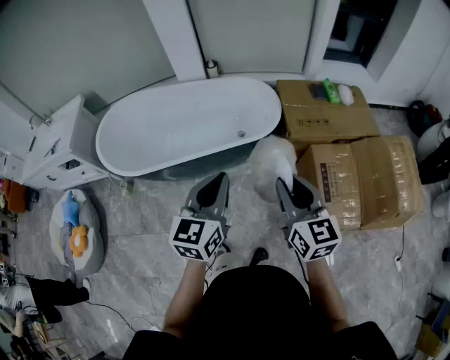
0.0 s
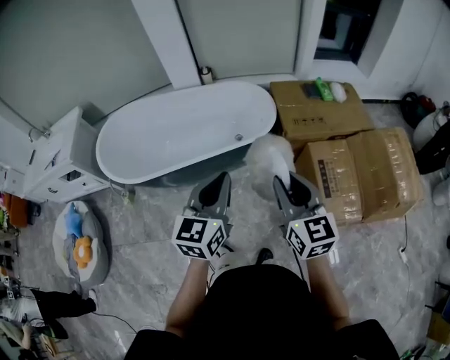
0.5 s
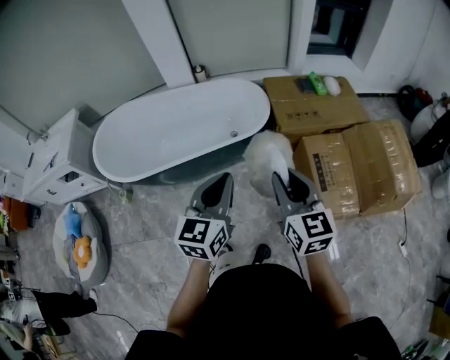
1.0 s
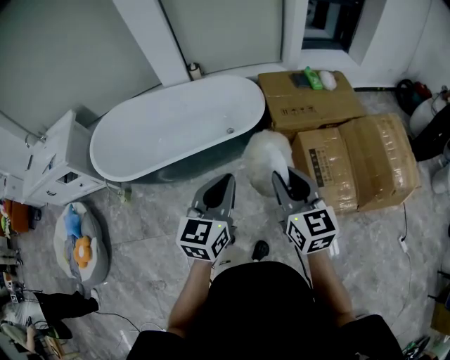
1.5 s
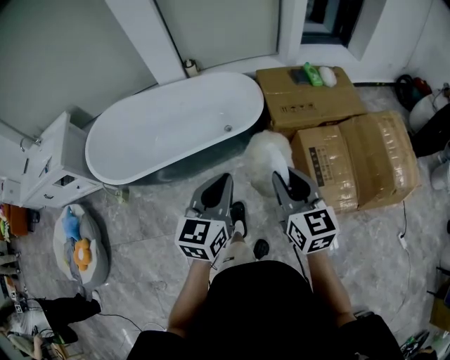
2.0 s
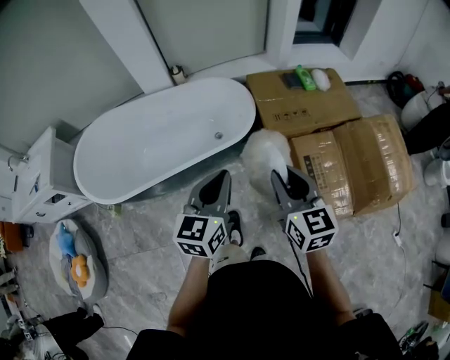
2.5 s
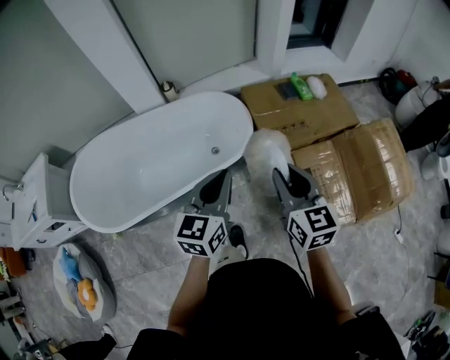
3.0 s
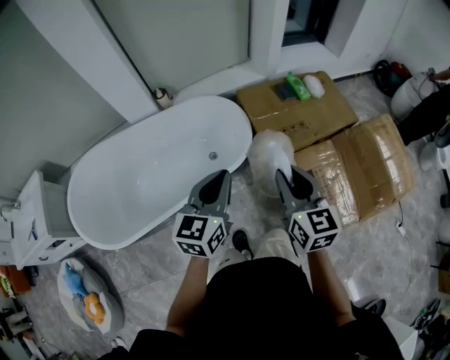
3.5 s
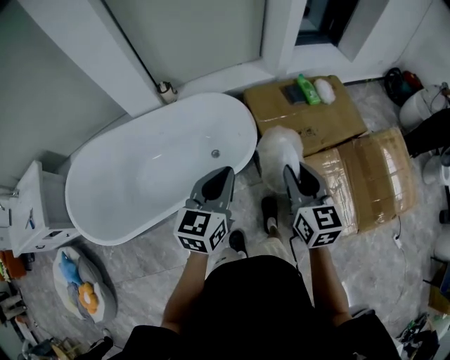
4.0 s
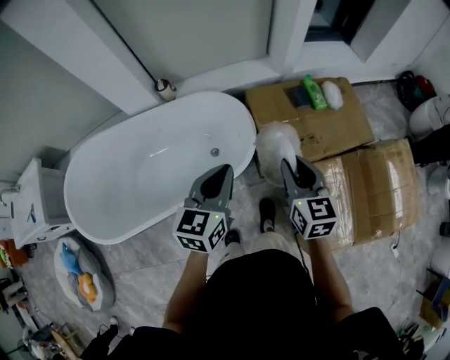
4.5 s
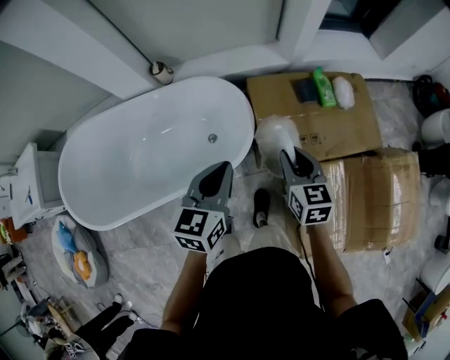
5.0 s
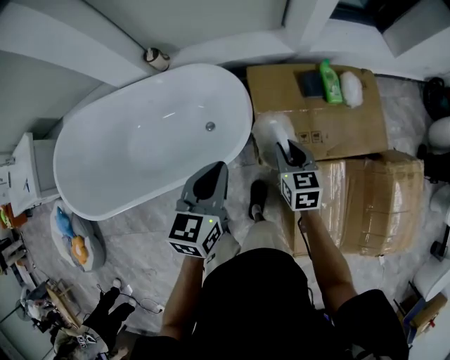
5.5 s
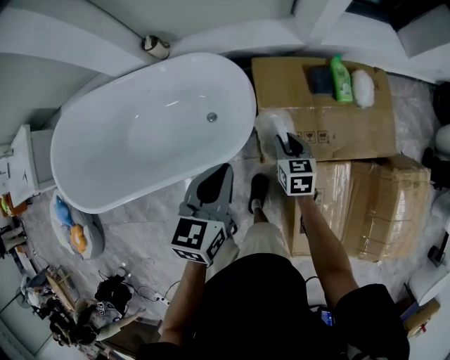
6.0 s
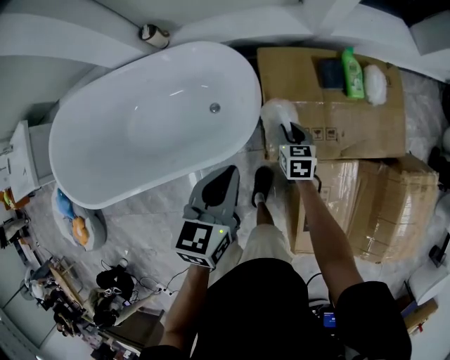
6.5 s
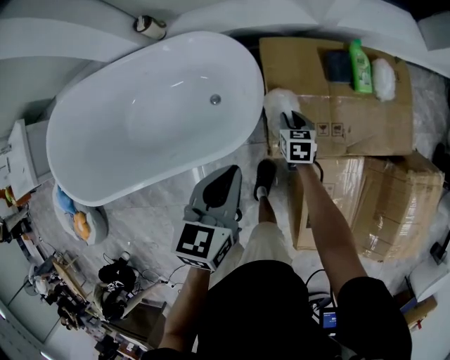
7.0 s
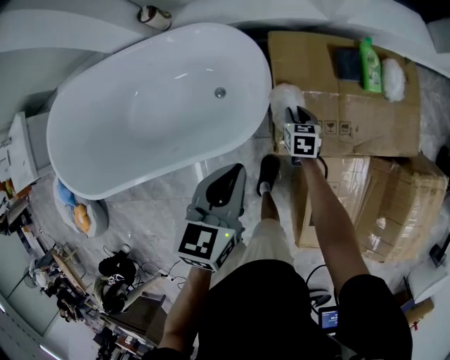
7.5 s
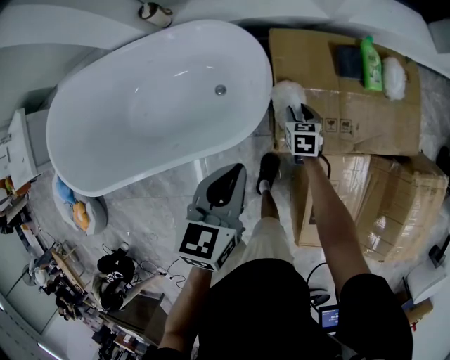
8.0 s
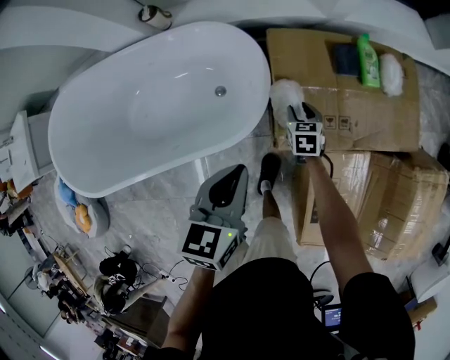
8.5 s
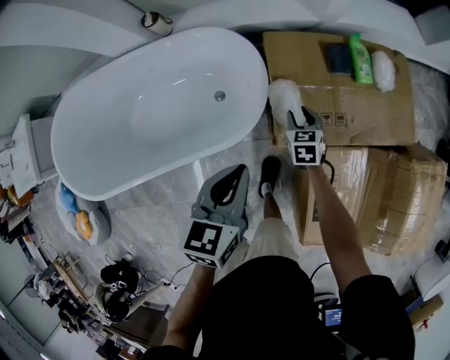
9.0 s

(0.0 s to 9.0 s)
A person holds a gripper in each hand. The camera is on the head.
0.0 s - 2.0 s: The right gripper moves approximately 5 cm, while the left gripper goes approximately 5 cm to the right.
2.0 s - 4.5 s: The two grippers travel together, forward, roughly 40 cm.
4.5 s - 7.0 s: The right gripper goes some 50 cm downward and forward, and angles its fingers downward, by approximately 30 degrees. The left gripper travels downward, forward and to the right by about 20 cm, and changes its angle by roughly 20 degrees.
7.0 s - 9.0 s: The right gripper changes place by some 5 cm, while the left gripper is displaced backward by about 5 cm.

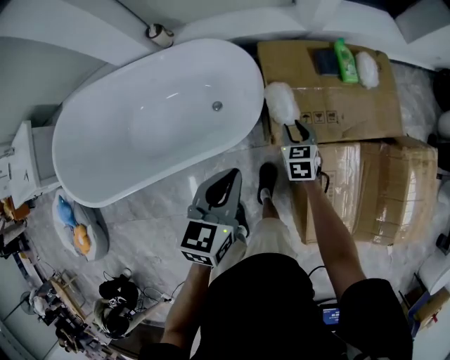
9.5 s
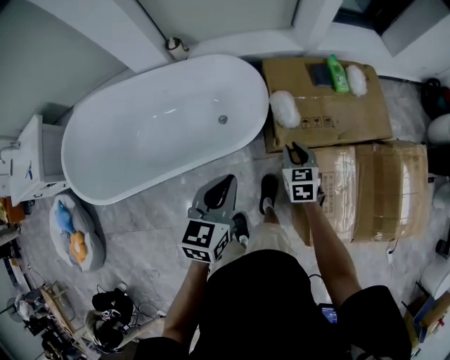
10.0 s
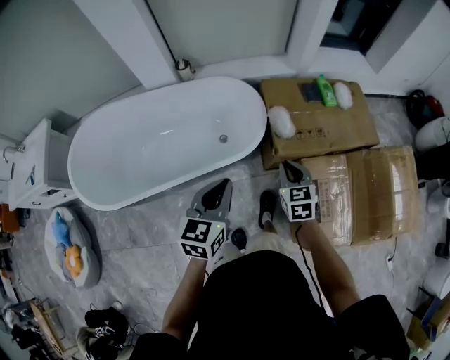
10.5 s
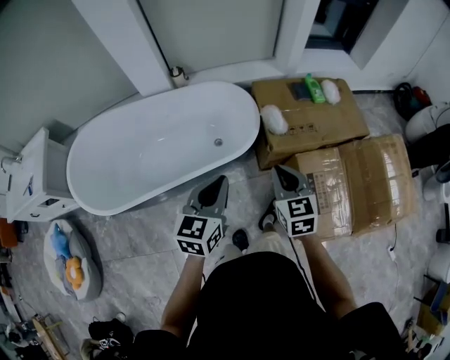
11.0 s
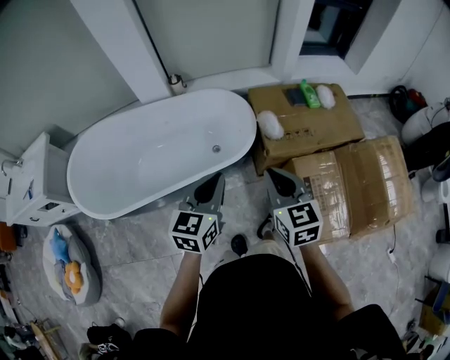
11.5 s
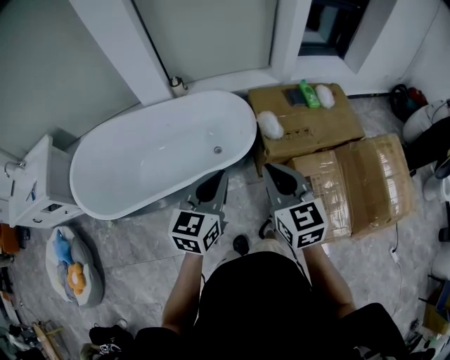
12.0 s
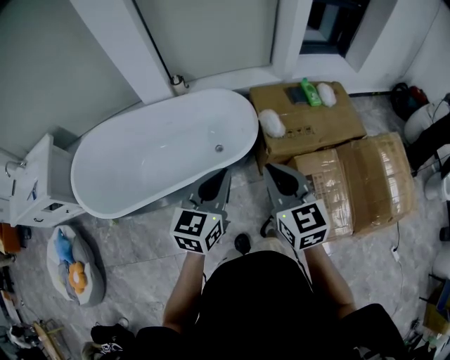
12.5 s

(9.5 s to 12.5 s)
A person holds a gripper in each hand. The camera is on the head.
9.5 s - 11.0 s: The right gripper is displaced backward and upward by roughly 40 cm, and closes; the left gripper is displaced backward, upward and to the left by roughly 25 cm.
11.0 s - 12.5 s: The right gripper travels upward by approximately 10 cm, while the left gripper shifts roughly 5 cm upward.

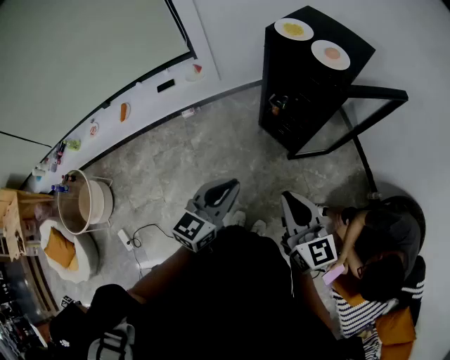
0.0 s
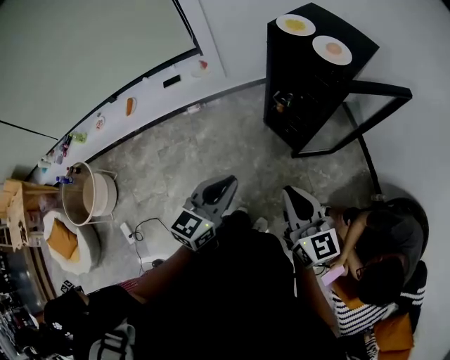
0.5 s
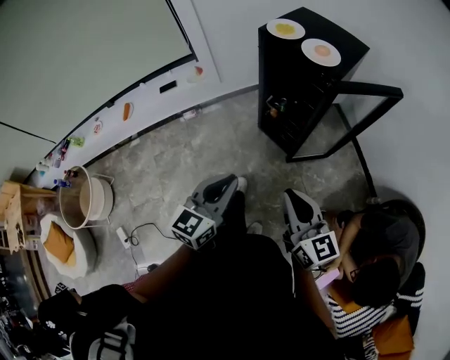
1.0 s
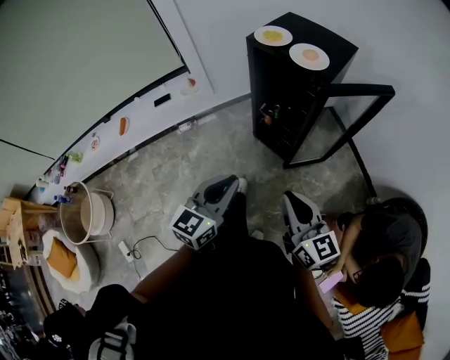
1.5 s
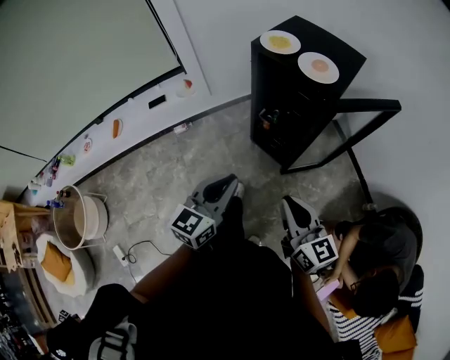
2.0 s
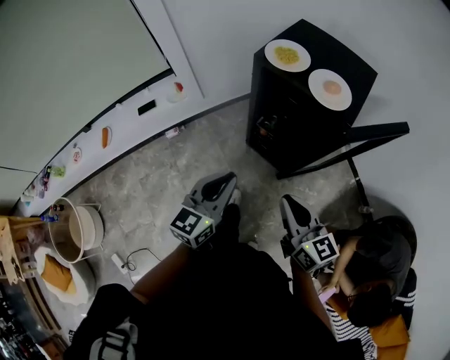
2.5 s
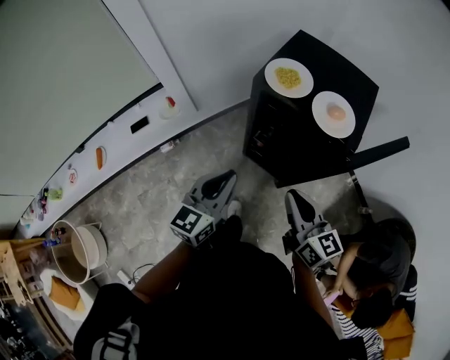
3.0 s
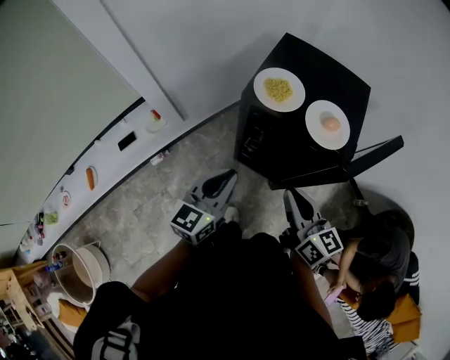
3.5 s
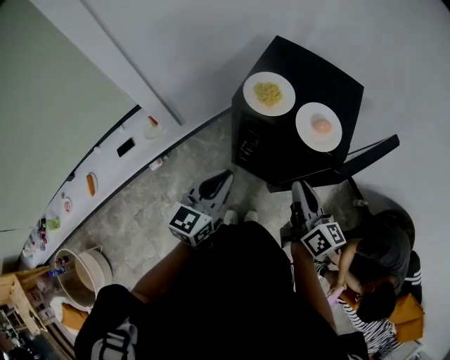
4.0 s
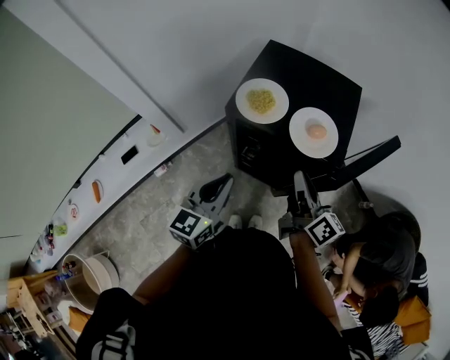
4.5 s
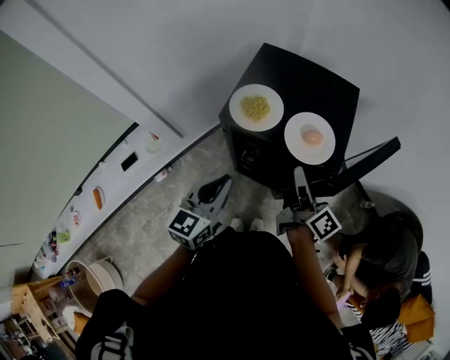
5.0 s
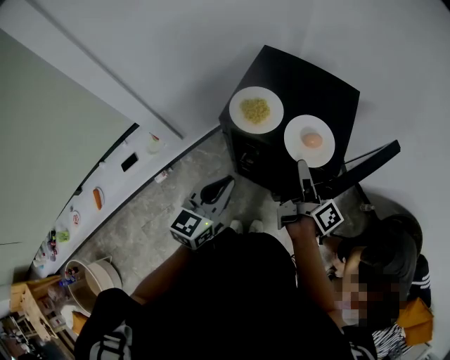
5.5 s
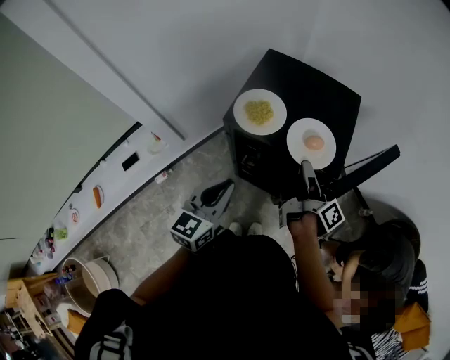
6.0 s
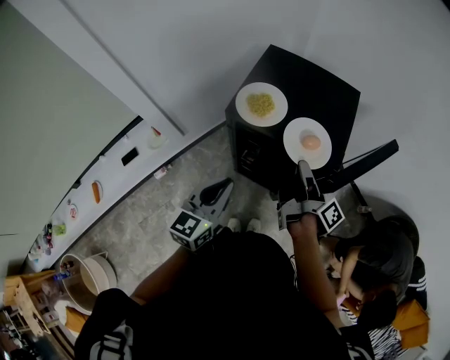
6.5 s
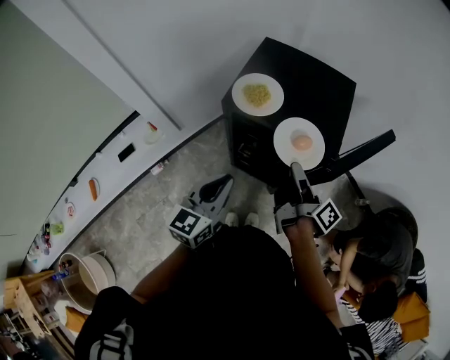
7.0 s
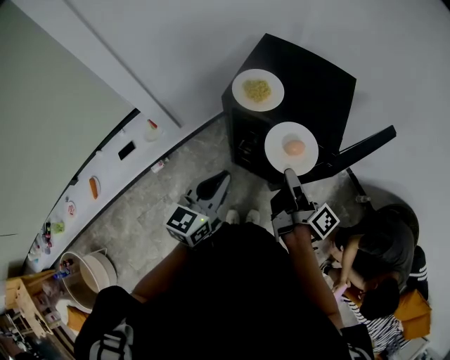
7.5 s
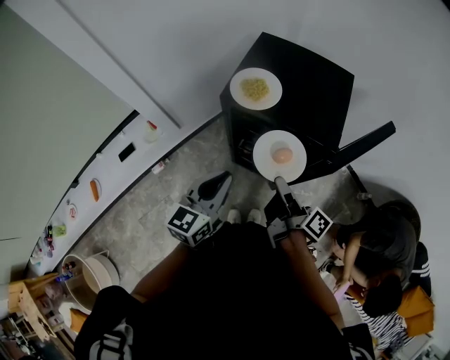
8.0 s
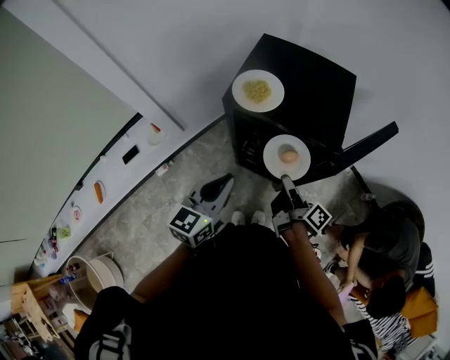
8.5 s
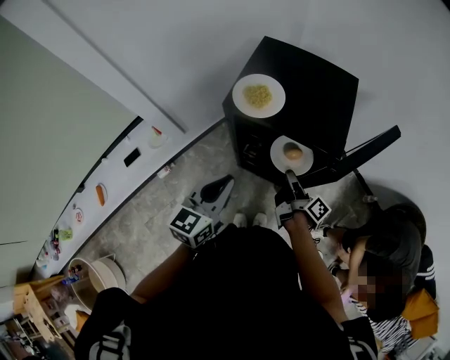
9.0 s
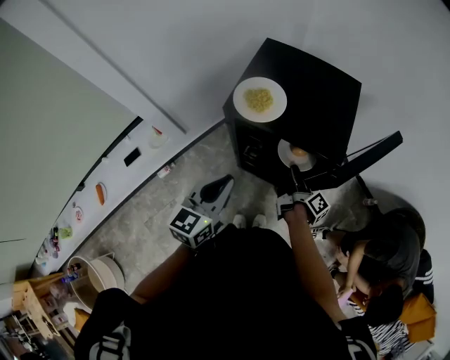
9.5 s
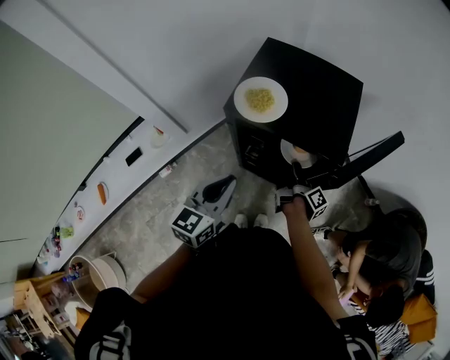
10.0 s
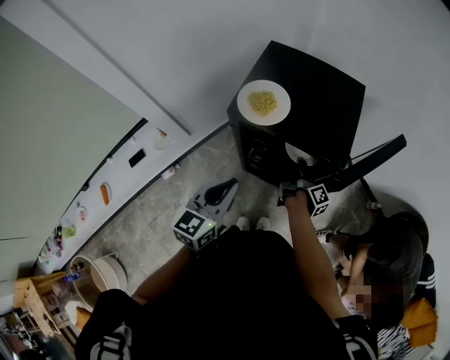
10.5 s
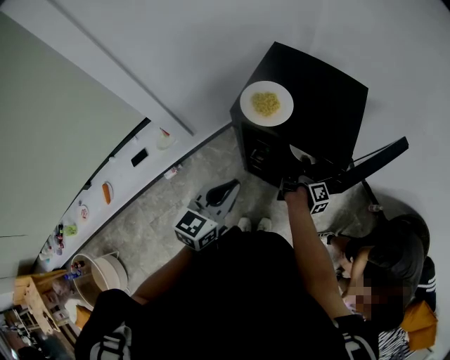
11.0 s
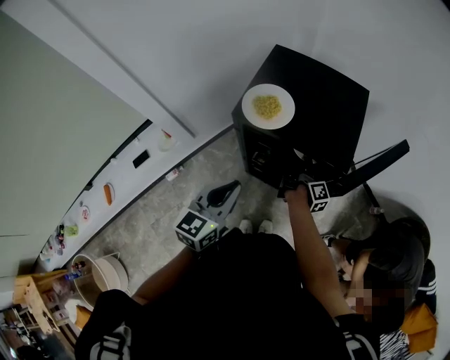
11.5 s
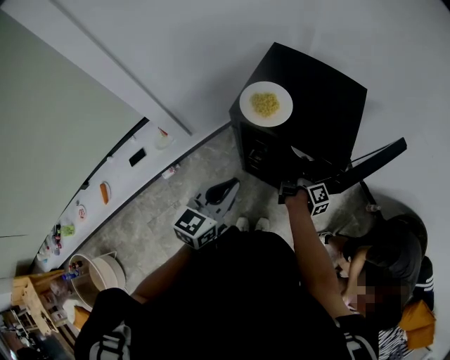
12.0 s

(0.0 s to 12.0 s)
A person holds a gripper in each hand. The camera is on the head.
0.0 s - 2.0 s: The left gripper travels forward by about 10 cm. The right gripper shifts about 10 cm forward and to the right.
2.0 s - 4.0 s: Both grippers travel together forward, about 30 cm. The right gripper swivels about 30 degrees.
4.0 s - 6.0 s: The right gripper travels forward by approximately 10 cm, and rotates around the line of its fingers by approximately 50 degrees, clockwise from behind.
6.0 s - 8.0 s: The right gripper shifts roughly 15 cm backward.
8.0 s - 10.0 s: The right gripper goes roughly 20 cm downward and forward, and rotates about 30 degrees.
10.0 s - 12.0 s: The grippers make only small movements.

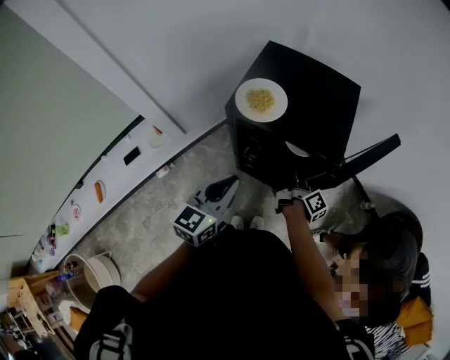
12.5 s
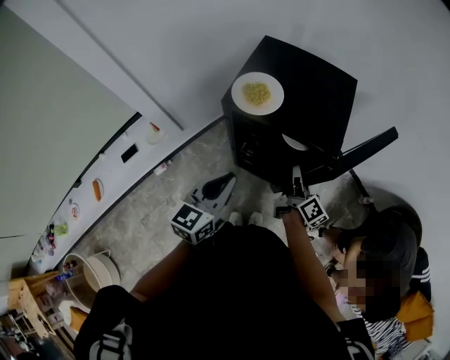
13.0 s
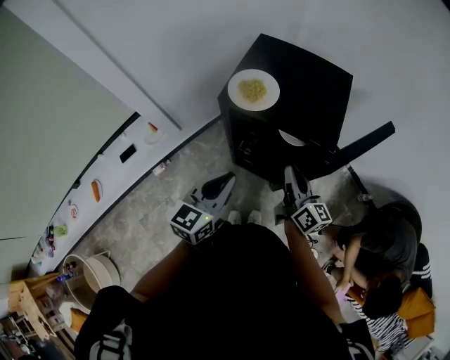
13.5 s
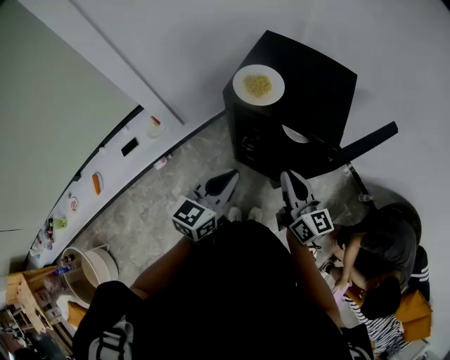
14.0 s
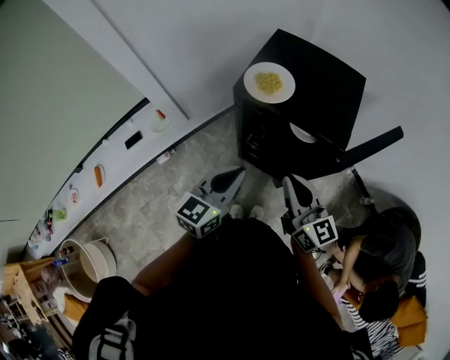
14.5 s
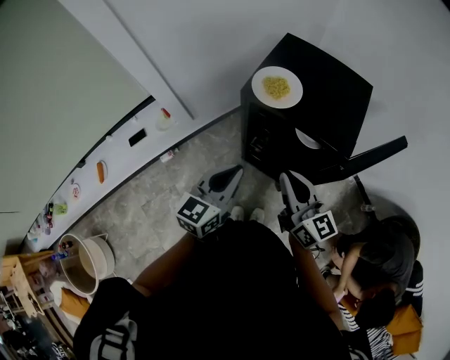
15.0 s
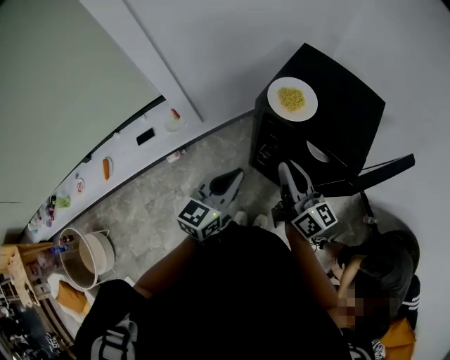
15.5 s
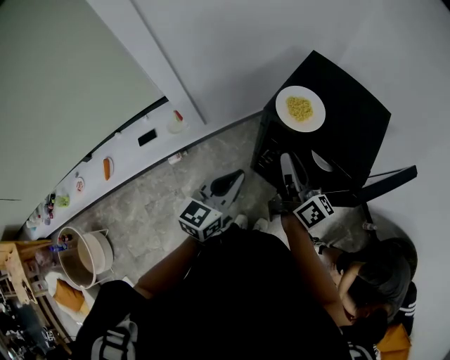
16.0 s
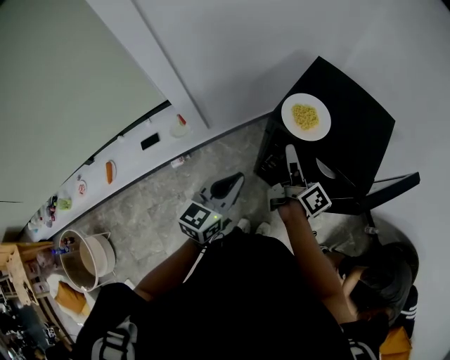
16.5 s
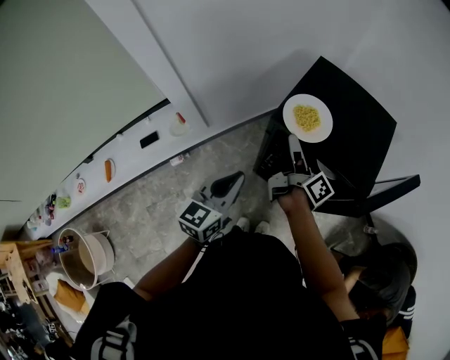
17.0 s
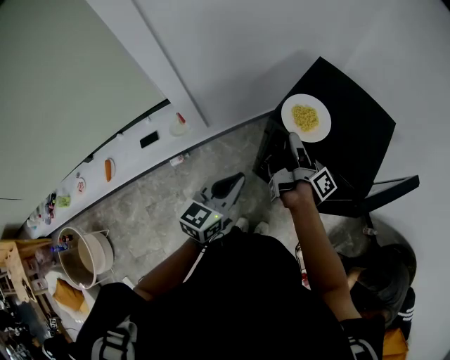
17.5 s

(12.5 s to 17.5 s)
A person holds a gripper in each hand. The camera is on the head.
12.5 s - 15.0 s: The right gripper goes about 25 cm upward, backward and to the left, and rolls counterclockwise, seen from behind, by some 50 degrees.
15.0 s - 17.5 s: The left gripper heads to the left, covering some 5 cm; the right gripper goes some 20 cm forward, and rolls clockwise, seen from behind, by about 70 degrees.
